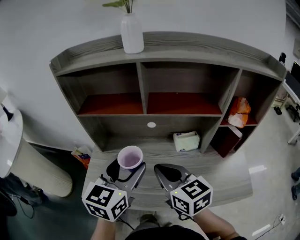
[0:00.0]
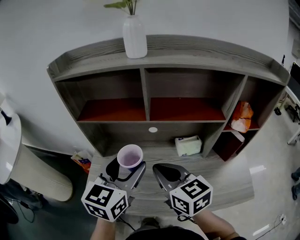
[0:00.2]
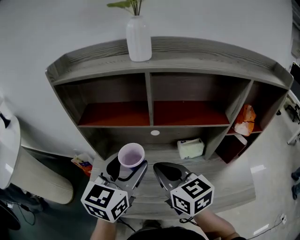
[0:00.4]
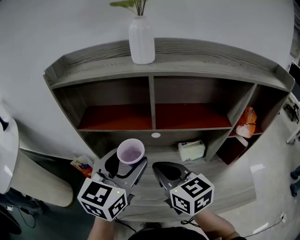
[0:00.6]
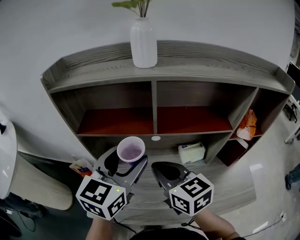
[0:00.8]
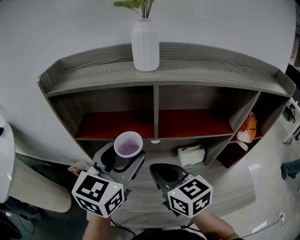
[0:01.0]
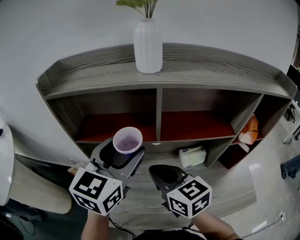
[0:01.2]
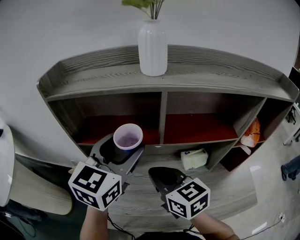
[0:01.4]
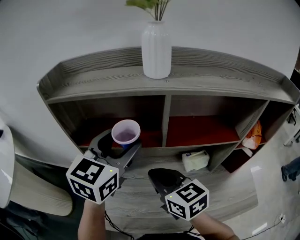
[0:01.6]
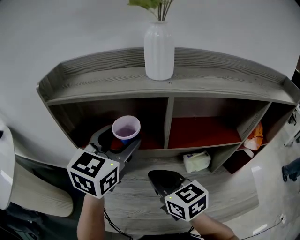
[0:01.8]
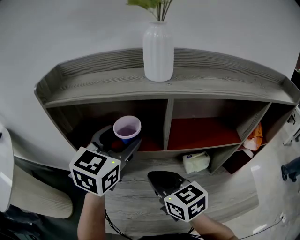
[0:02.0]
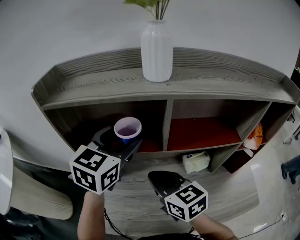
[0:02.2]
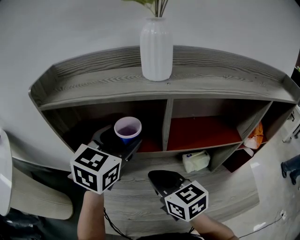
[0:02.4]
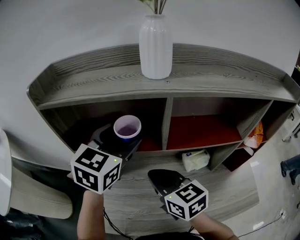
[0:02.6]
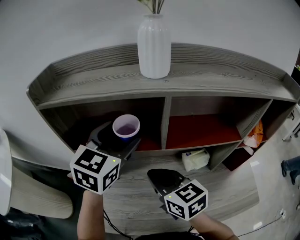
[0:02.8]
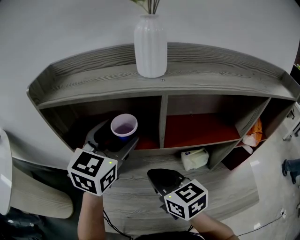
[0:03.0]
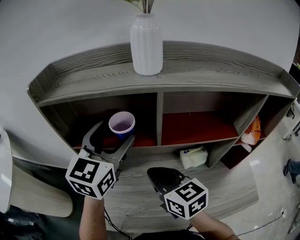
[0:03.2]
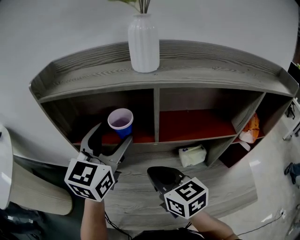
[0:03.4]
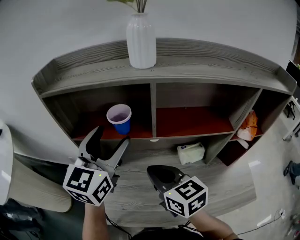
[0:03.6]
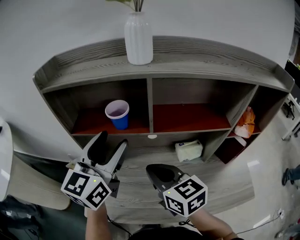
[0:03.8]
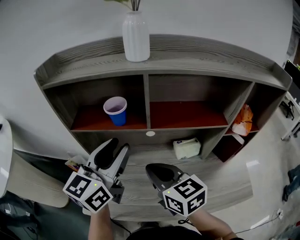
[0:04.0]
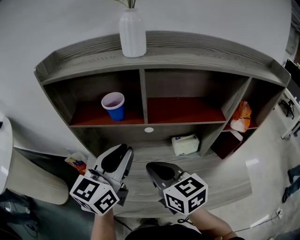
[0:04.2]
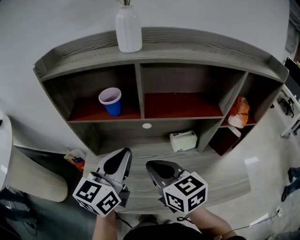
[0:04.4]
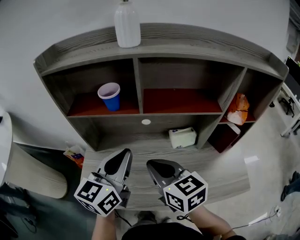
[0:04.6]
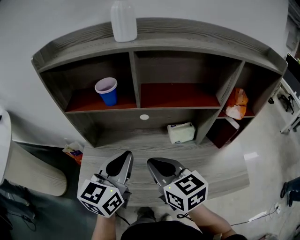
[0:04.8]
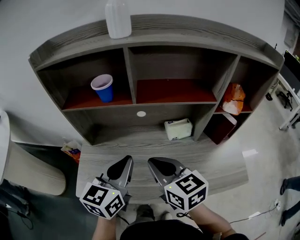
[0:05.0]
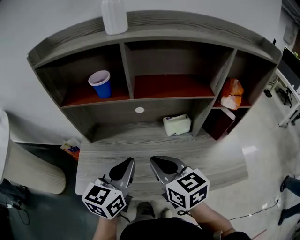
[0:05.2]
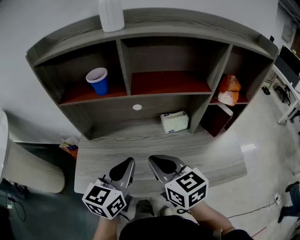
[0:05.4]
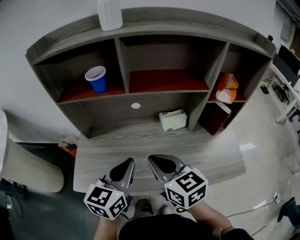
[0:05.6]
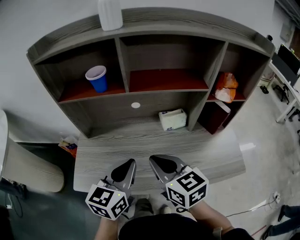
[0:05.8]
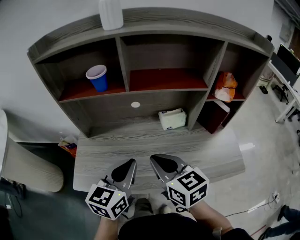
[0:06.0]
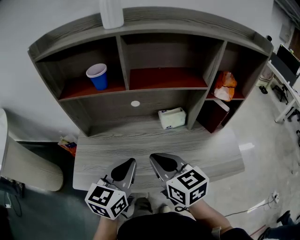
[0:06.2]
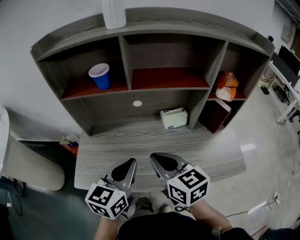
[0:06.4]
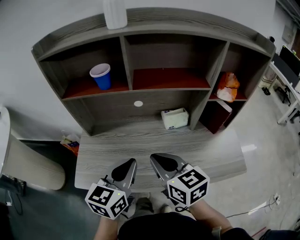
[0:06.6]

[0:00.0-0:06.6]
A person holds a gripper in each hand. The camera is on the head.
0:00.0 to 0:01.6: The right gripper shifts some 15 cm forward and to the left. Meanwhile the left gripper travels forward and upward by about 20 cm.
0:01.6 to 0:03.2: The grippers make only small movements.
0:03.2 to 0:05.0: The right gripper goes approximately 15 cm backward and to the right. Meanwhile the left gripper shifts roughly 25 cm backward and downward, turns by roughly 20 degrees, and closes.
0:05.0 to 0:06.6: The left gripper goes approximately 5 cm backward.

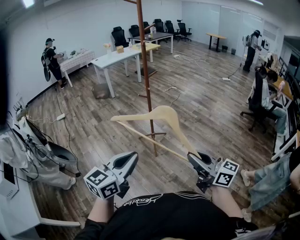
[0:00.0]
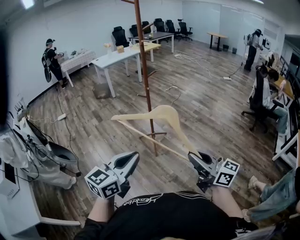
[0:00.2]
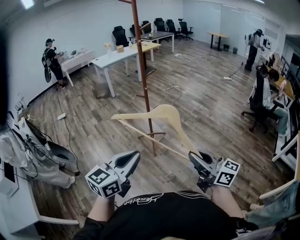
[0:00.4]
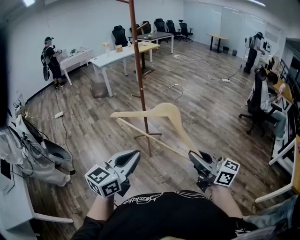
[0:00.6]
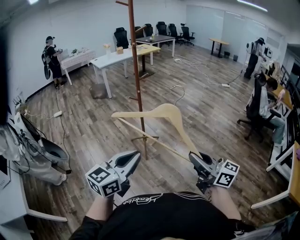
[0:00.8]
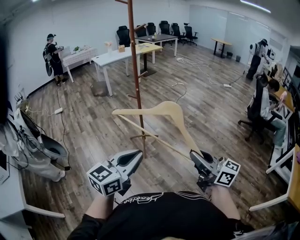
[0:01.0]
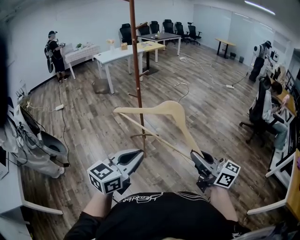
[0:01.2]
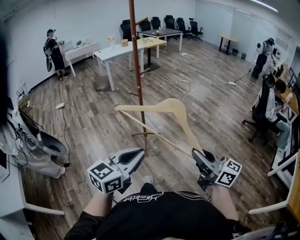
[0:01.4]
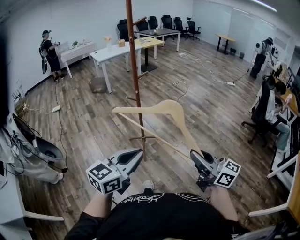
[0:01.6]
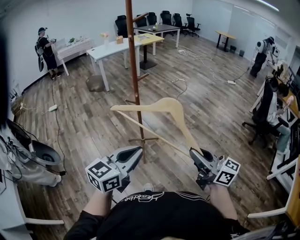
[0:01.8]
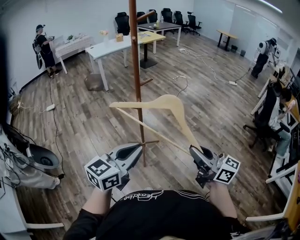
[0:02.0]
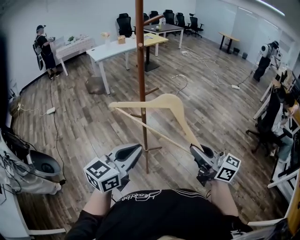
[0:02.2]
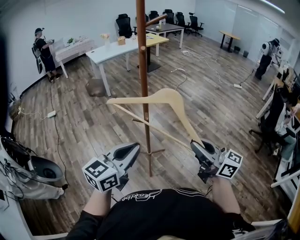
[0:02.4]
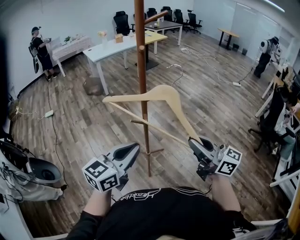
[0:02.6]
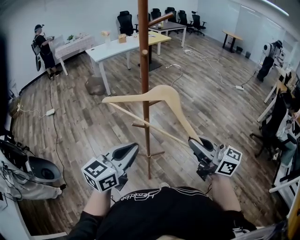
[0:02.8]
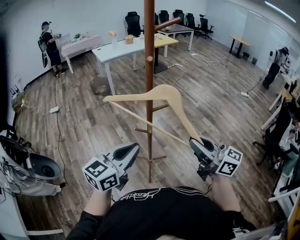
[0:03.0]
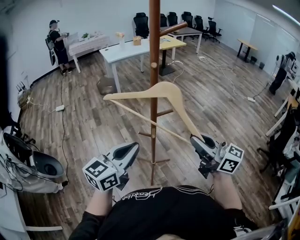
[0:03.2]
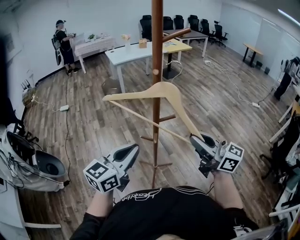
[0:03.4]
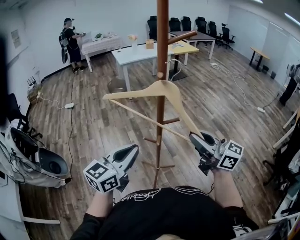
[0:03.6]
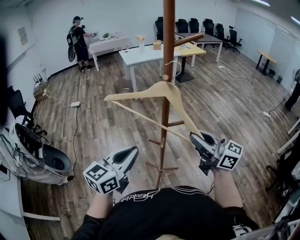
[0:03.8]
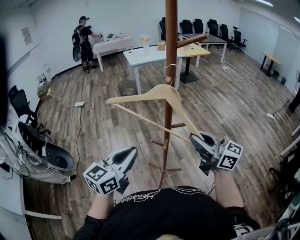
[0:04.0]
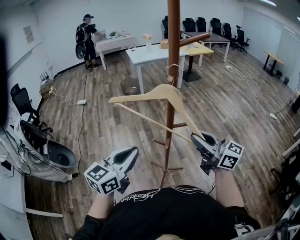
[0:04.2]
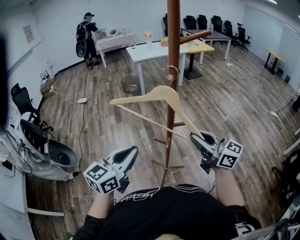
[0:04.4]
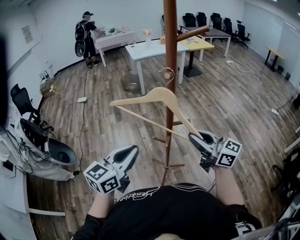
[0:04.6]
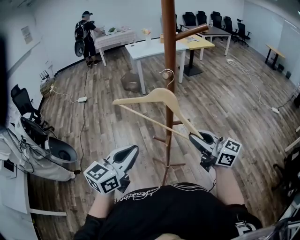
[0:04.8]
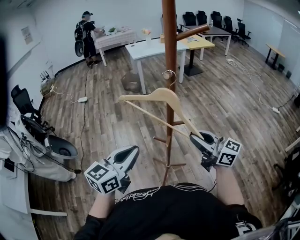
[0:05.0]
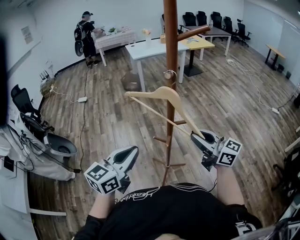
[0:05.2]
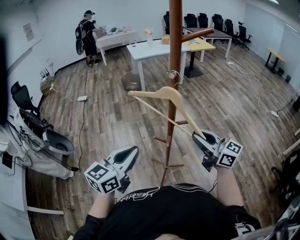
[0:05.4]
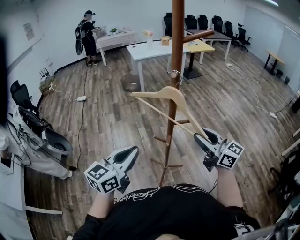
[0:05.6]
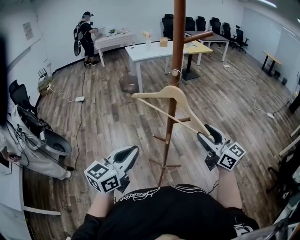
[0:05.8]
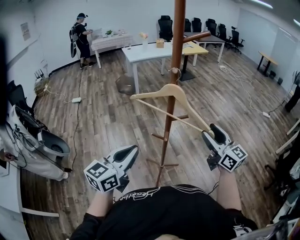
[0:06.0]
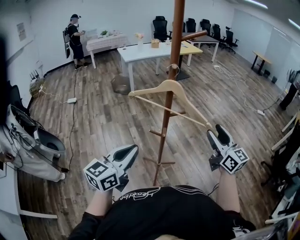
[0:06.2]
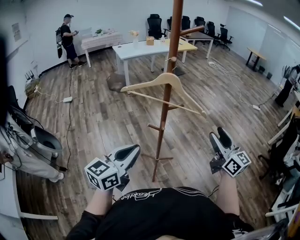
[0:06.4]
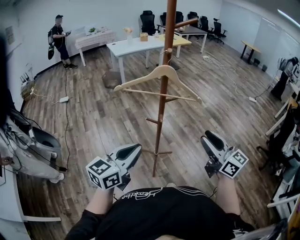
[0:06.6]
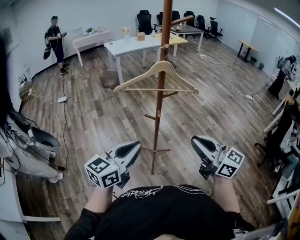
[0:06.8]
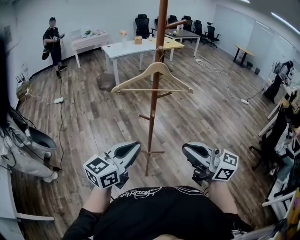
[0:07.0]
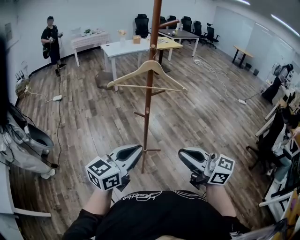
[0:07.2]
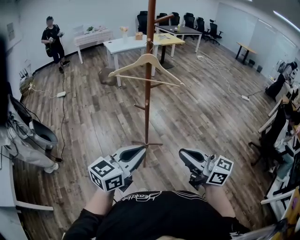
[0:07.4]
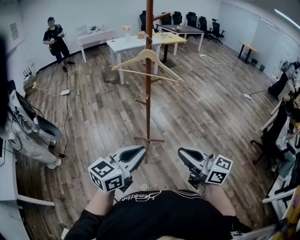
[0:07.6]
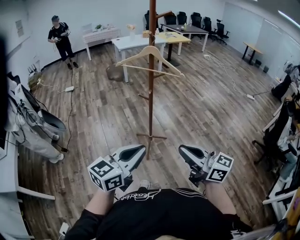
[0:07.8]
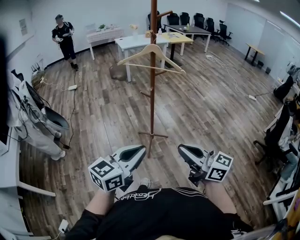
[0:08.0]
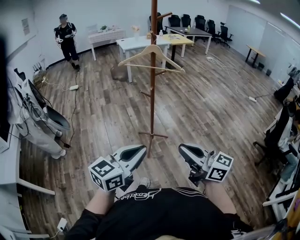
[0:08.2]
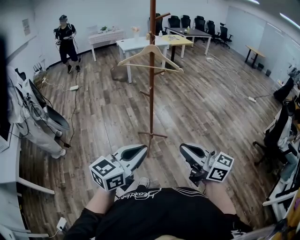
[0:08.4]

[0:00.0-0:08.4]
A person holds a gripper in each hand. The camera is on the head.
0:00.0 to 0:01.4: The right gripper travels to the right and forward by some 20 cm. Meanwhile the left gripper heads to the right, covering about 15 cm.
0:01.4 to 0:02.8: The two grippers travel together, forward, approximately 40 cm.
0:02.8 to 0:04.2: The left gripper goes some 10 cm forward, and turns by approximately 20 degrees, while the right gripper moves forward, about 15 cm.
0:04.2 to 0:05.6: The right gripper changes place by about 5 cm.
0:05.6 to 0:07.0: The right gripper is displaced backward by about 25 cm, and closes. The left gripper is displaced backward by approximately 15 cm.
0:07.0 to 0:08.4: Both grippers move backward, roughly 25 cm.

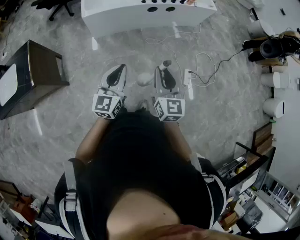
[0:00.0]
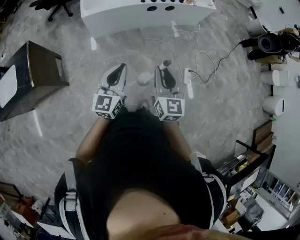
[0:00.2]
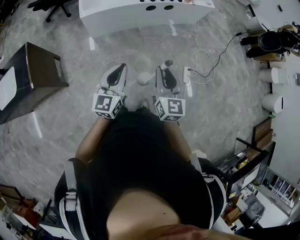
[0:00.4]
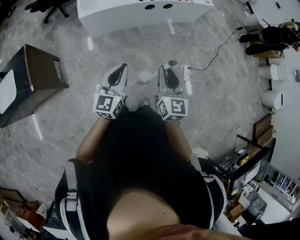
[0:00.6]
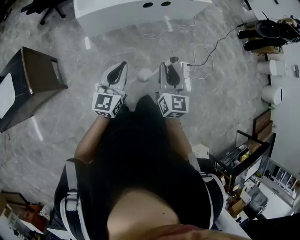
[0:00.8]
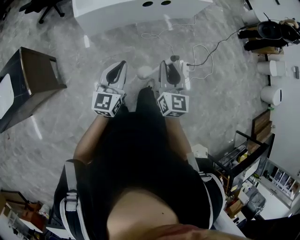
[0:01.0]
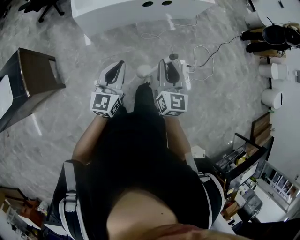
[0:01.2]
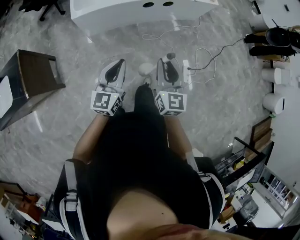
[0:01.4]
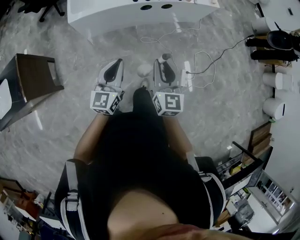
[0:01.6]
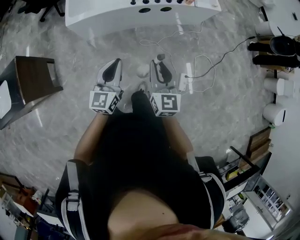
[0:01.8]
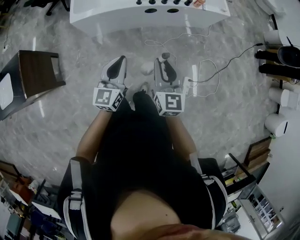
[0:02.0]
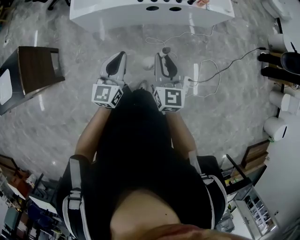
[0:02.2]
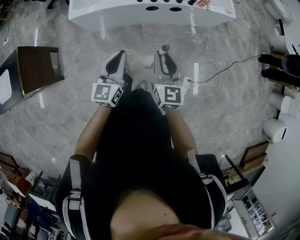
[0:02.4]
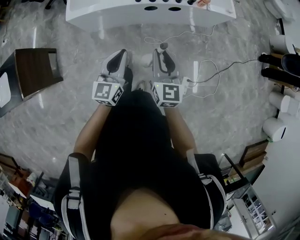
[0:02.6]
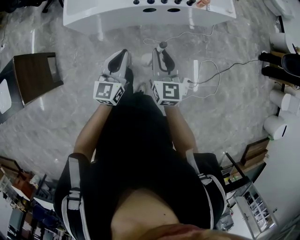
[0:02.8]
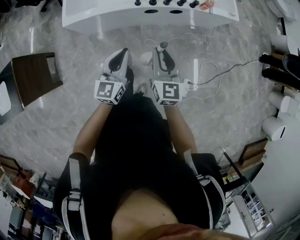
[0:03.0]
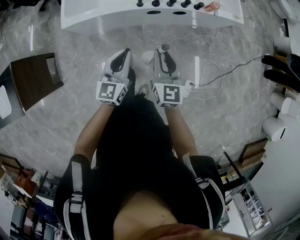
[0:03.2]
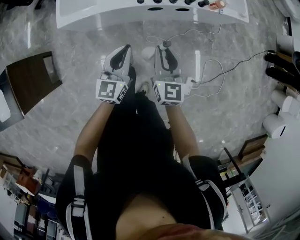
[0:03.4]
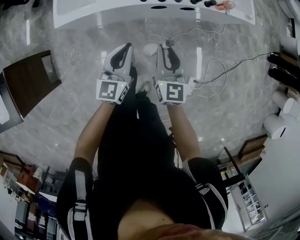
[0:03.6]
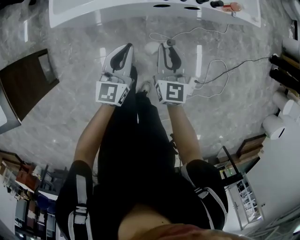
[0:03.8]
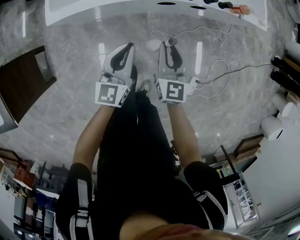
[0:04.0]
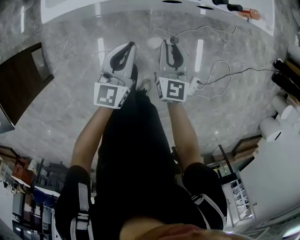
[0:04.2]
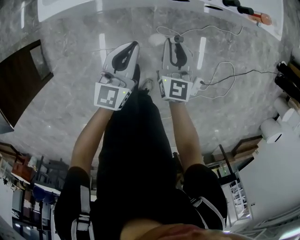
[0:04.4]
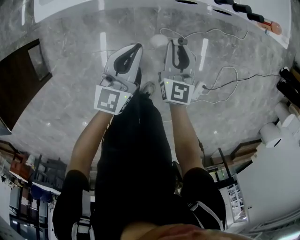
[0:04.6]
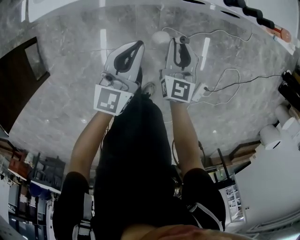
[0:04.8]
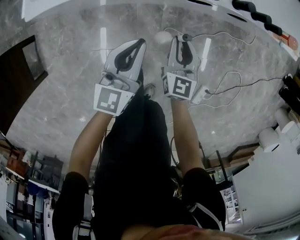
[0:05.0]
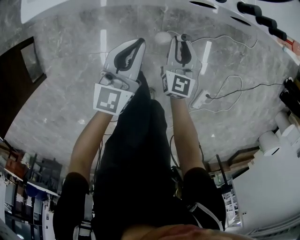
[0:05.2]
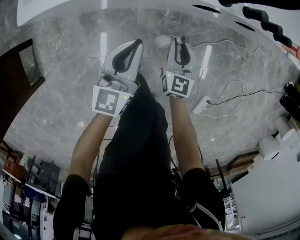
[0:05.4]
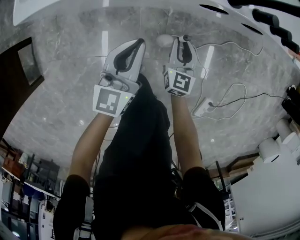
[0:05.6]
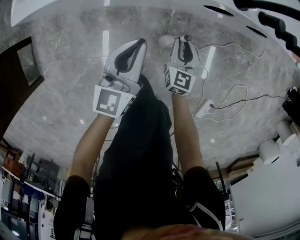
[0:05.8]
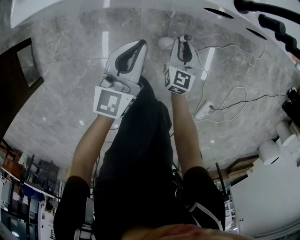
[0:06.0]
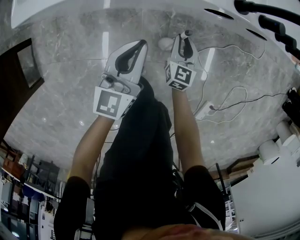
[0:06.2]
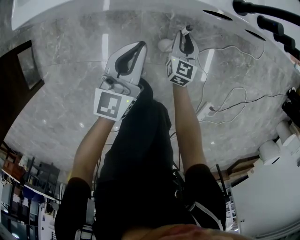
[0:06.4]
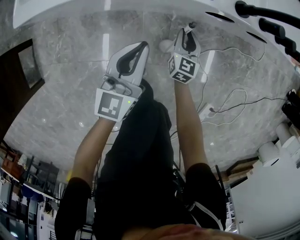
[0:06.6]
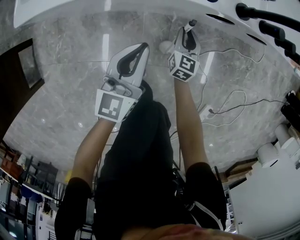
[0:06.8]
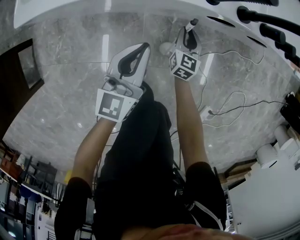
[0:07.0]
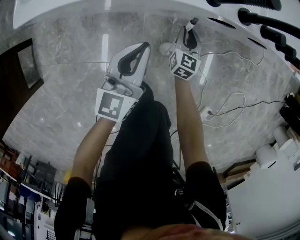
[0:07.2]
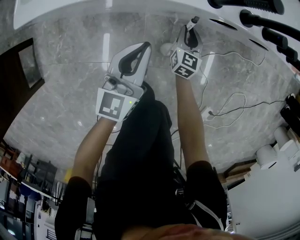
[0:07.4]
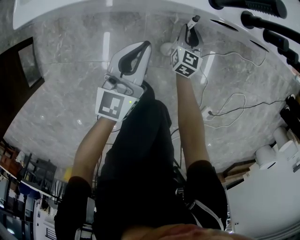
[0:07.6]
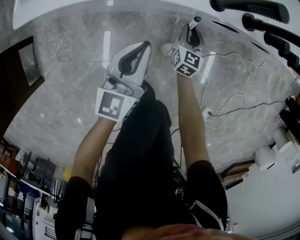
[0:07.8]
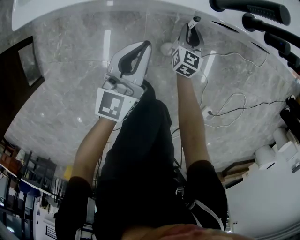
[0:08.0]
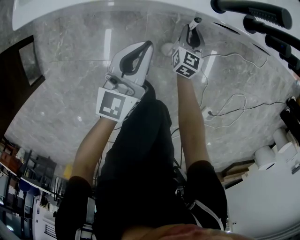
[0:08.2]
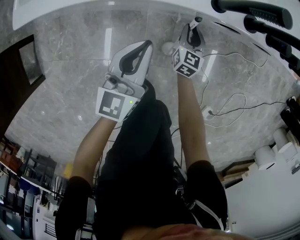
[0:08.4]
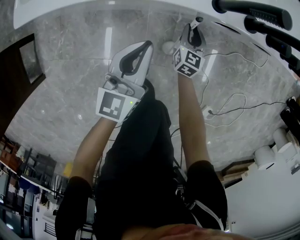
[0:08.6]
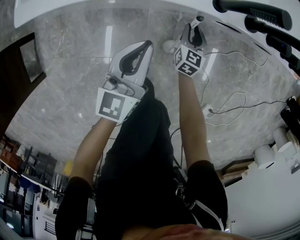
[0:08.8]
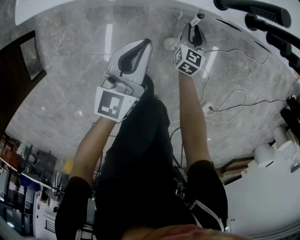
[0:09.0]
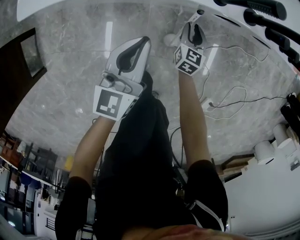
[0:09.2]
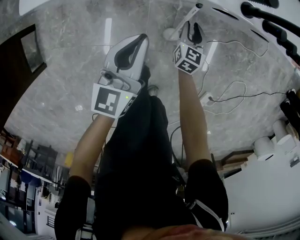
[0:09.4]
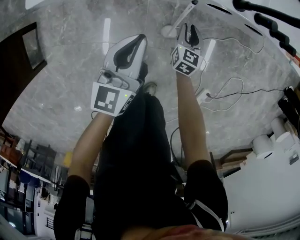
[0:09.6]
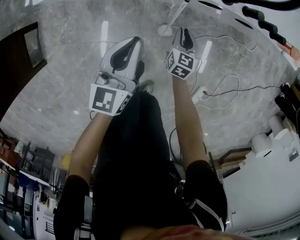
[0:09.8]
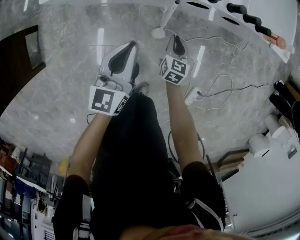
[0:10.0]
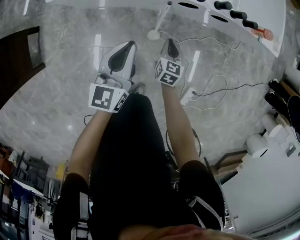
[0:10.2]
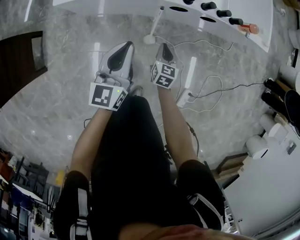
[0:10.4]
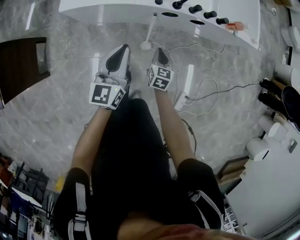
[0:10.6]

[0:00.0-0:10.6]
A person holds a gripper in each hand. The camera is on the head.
0:00.0 to 0:01.6: The grippers both shift forward by roughly 20 cm.
0:01.6 to 0:03.0: The grippers both shift forward by about 25 cm.
0:03.0 to 0:04.6: The two grippers go about 35 cm downward and forward.
0:04.6 to 0:06.0: The left gripper travels downward by approximately 20 cm, while the right gripper heads downward, covering approximately 30 cm.
0:06.0 to 0:07.6: The right gripper travels forward by about 10 cm.
0:07.6 to 0:09.0: Both grippers stay about where they are.
0:09.0 to 0:10.6: The two grippers go roughly 35 cm upward and backward. The right gripper closes up.
